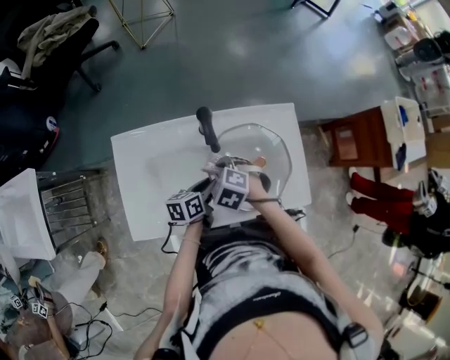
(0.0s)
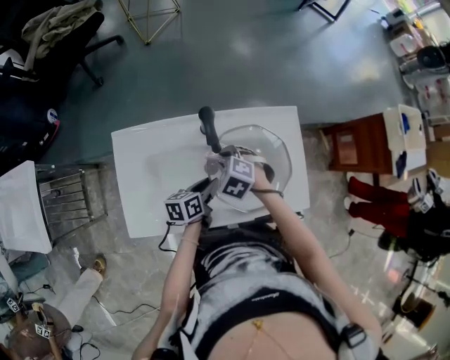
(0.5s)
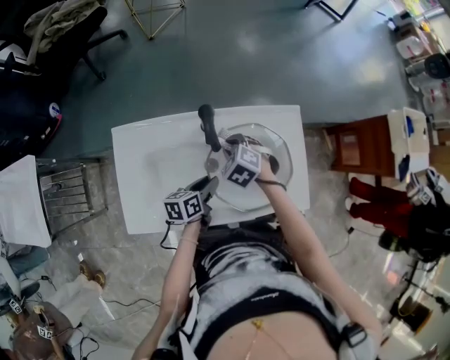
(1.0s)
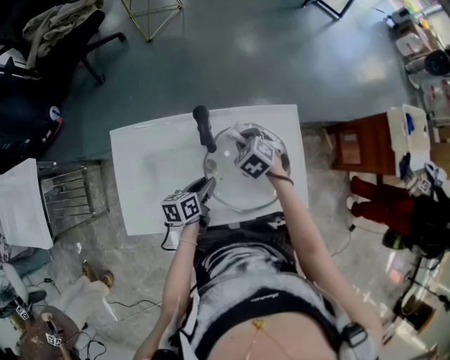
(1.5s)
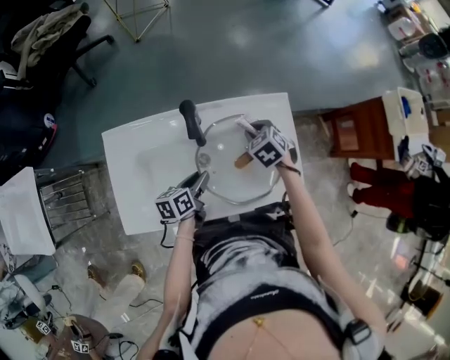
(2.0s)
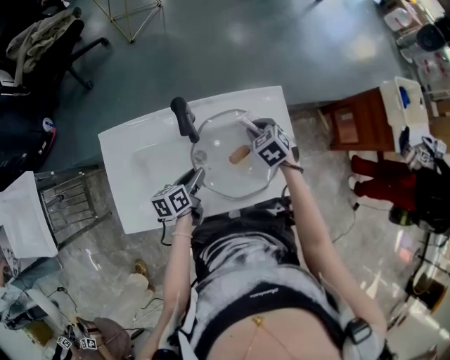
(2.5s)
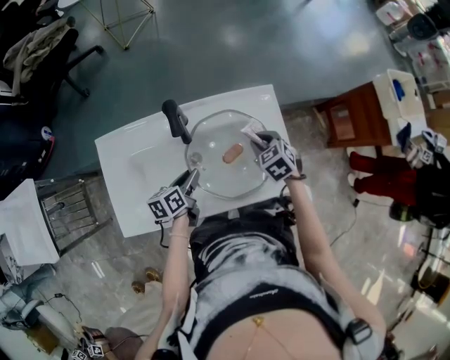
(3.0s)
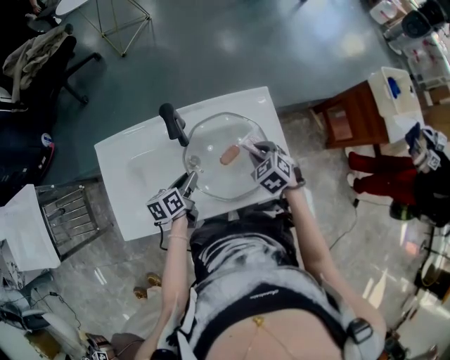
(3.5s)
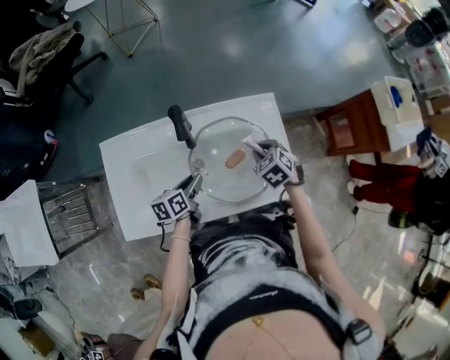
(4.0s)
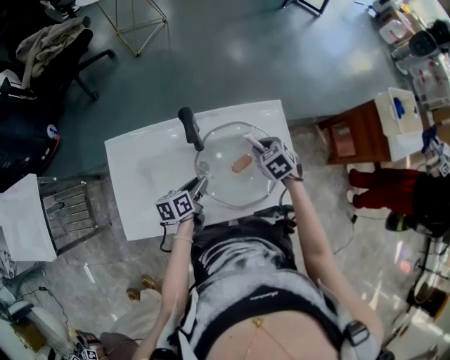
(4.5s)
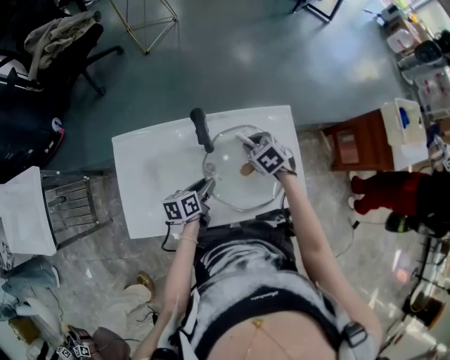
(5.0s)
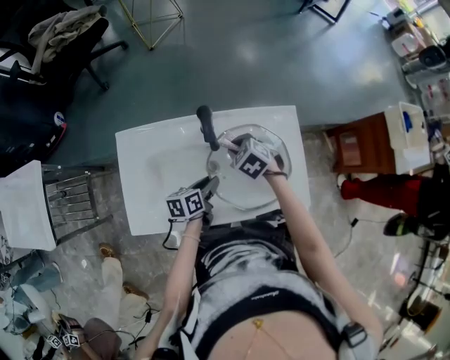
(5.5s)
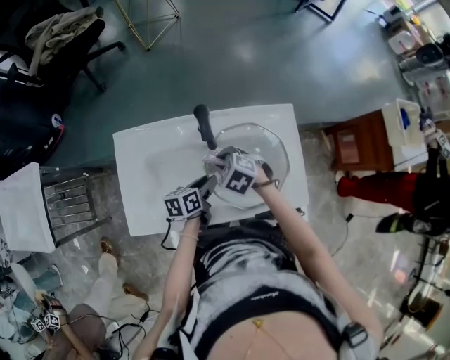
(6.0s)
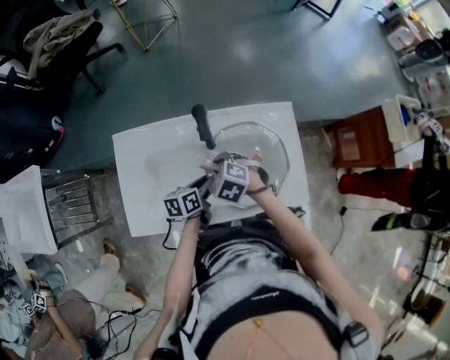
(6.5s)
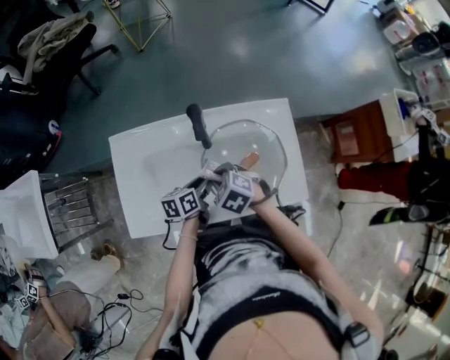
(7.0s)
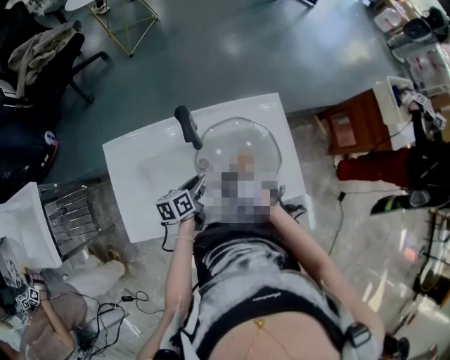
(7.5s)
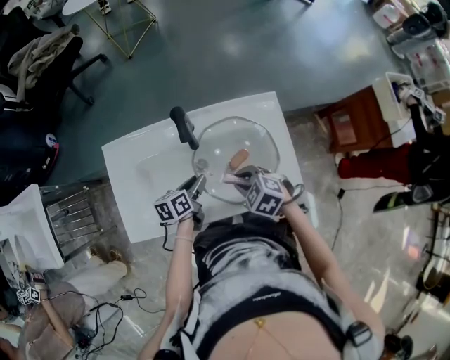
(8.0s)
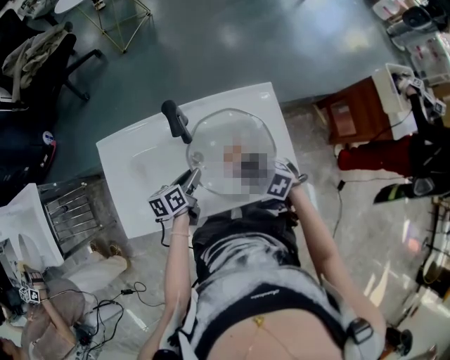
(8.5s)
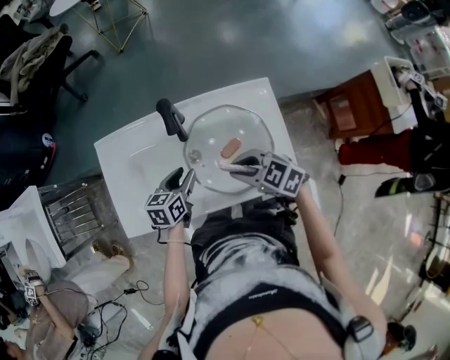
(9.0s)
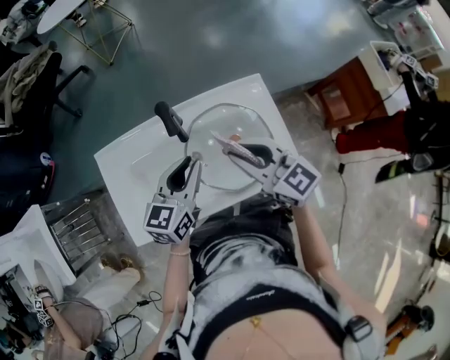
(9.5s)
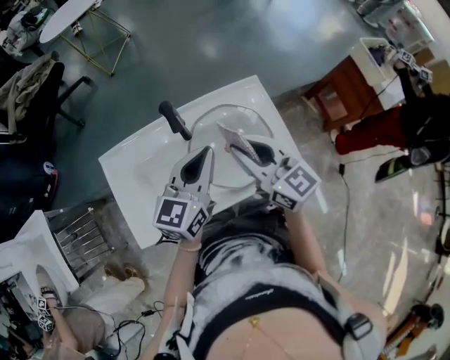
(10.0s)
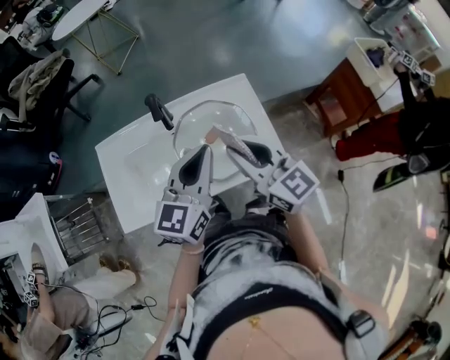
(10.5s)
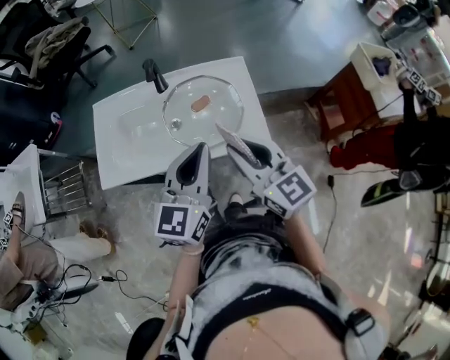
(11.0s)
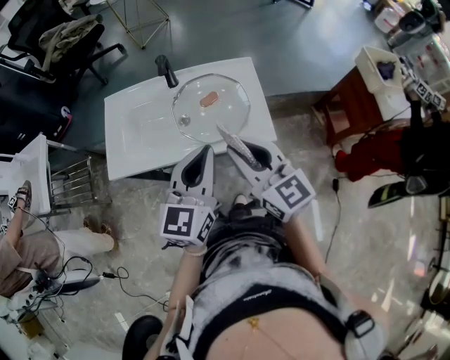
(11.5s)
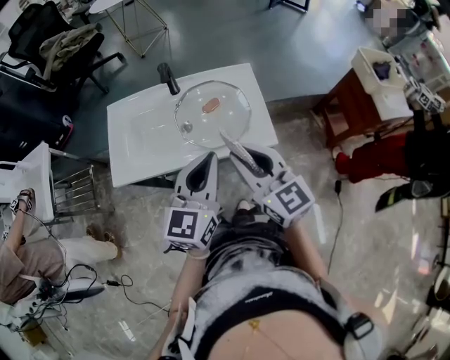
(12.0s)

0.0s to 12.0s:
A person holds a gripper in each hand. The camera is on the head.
0.0s to 2.0s: The right gripper shifts some 20 cm to the right and forward, and changes its angle by approximately 30 degrees.
2.0s to 4.0s: The right gripper goes some 10 cm to the right and backward.
4.0s to 6.0s: The right gripper shifts approximately 20 cm to the left, and turns by roughly 30 degrees.
6.0s to 8.0s: The right gripper is displaced backward and to the right by roughly 15 cm.
8.0s to 10.0s: The two grippers go about 25 cm upward. The right gripper points its fingers approximately 60 degrees further upward; the left gripper rolls clockwise, seen from behind, by about 40 degrees, and closes.
10.0s to 12.0s: The two grippers go approximately 20 cm backward.

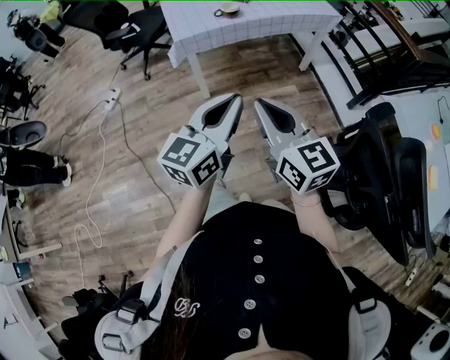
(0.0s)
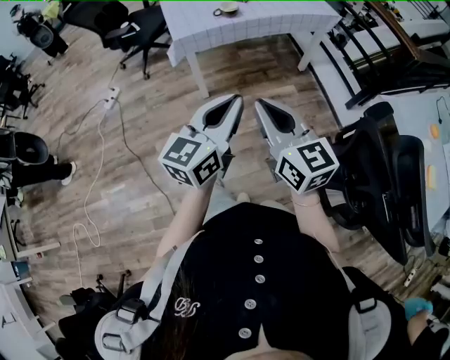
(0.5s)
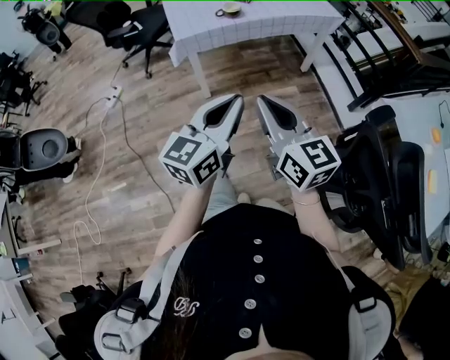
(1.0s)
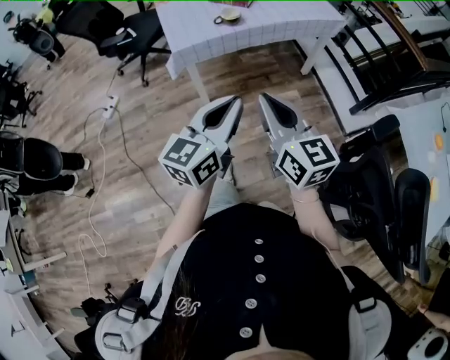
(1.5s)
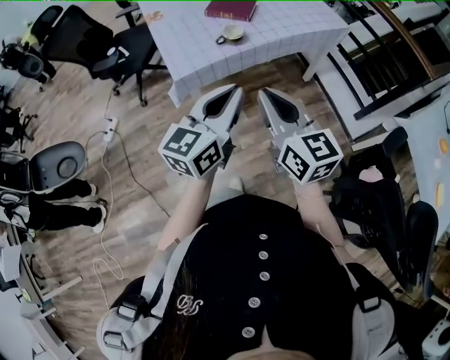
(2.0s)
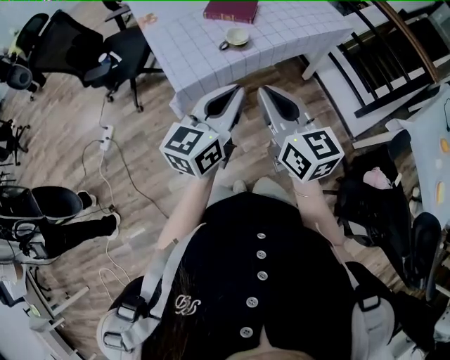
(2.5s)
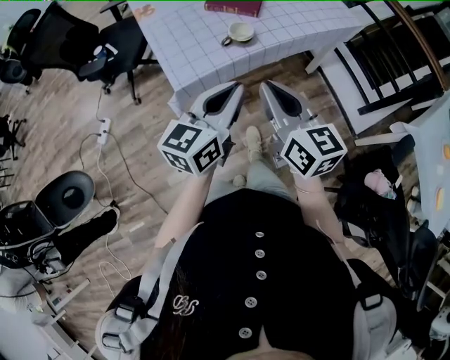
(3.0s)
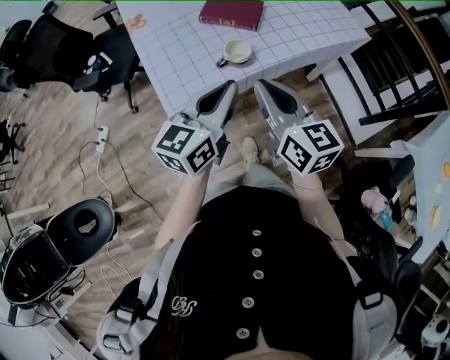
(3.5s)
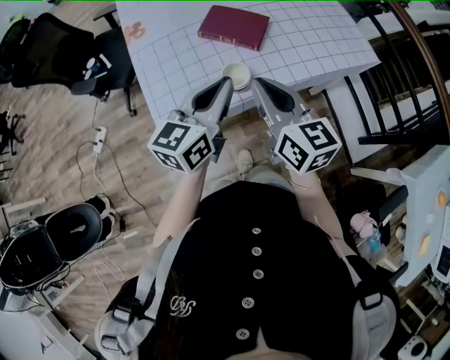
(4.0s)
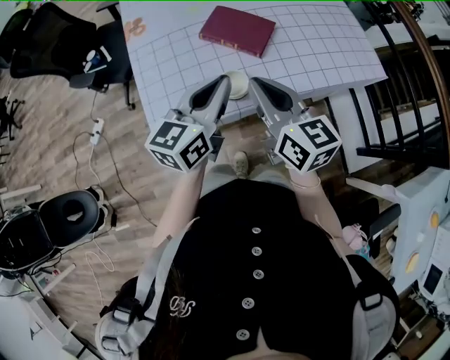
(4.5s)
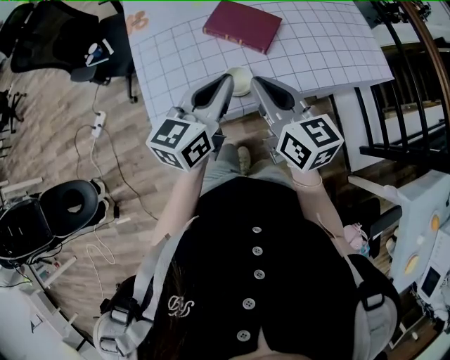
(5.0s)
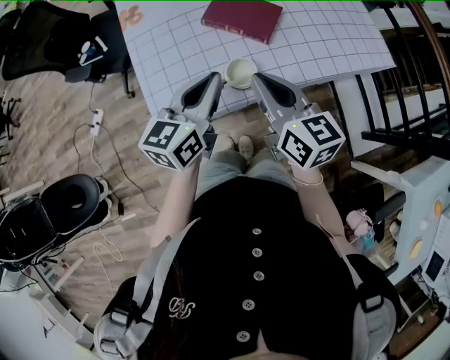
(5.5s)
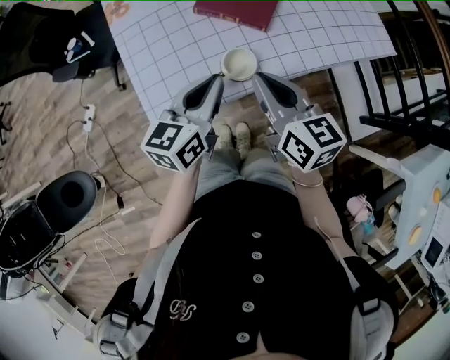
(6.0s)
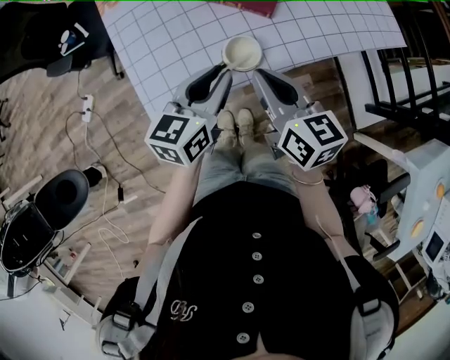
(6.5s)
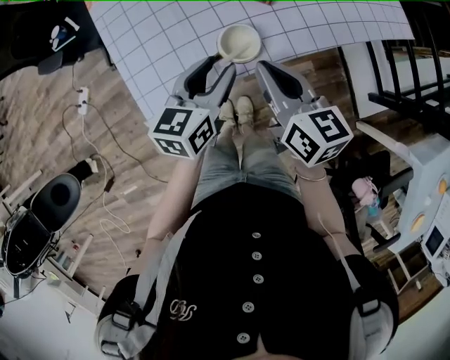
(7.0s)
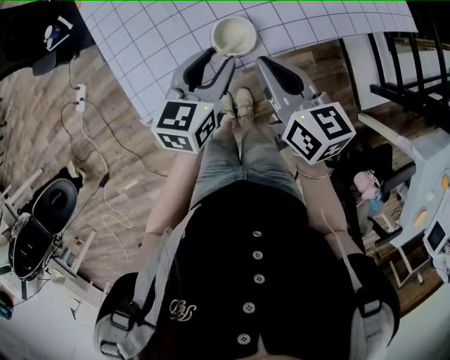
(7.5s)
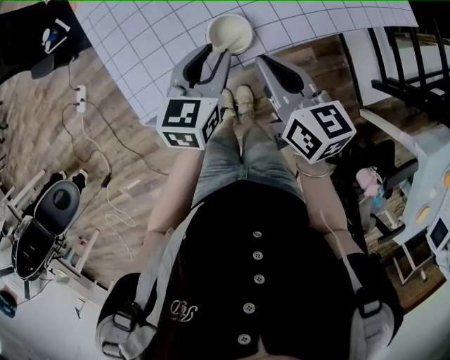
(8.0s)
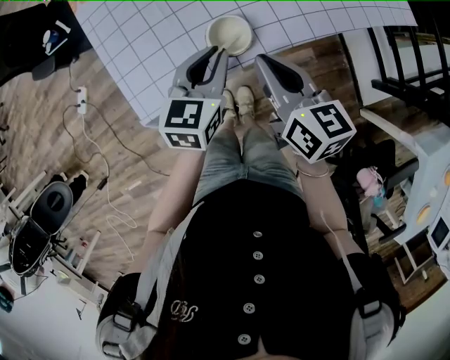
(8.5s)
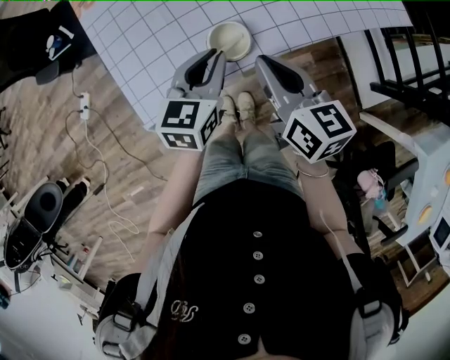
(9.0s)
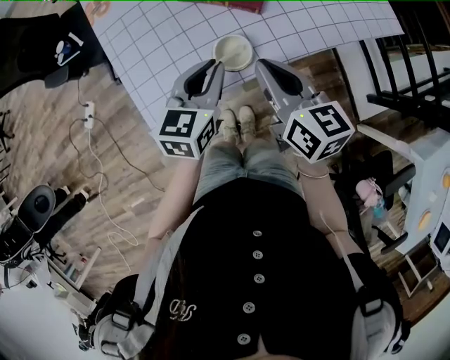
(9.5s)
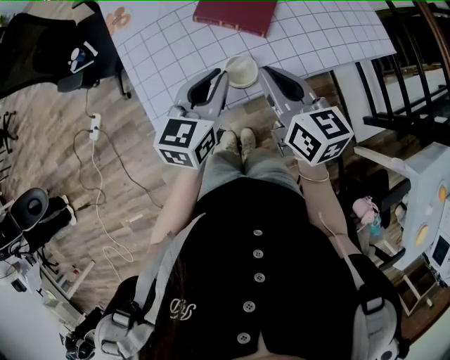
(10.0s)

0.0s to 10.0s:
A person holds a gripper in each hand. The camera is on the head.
0.0s to 2.0s: The two grippers go some 25 cm forward.
2.0s to 4.0s: Both grippers move forward, roughly 35 cm.
4.0s to 6.0s: The grippers both shift downward by about 5 cm.
6.0s to 8.0s: Both grippers travel together downward, about 10 cm. The left gripper opens its fingers.
8.0s to 10.0s: The grippers both shift upward by roughly 10 cm.

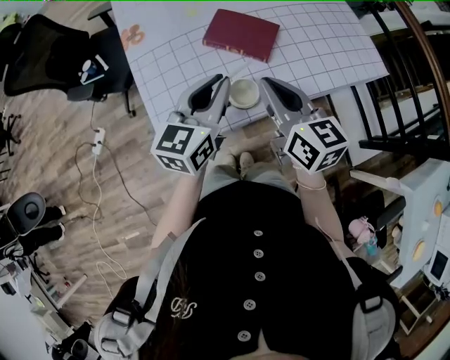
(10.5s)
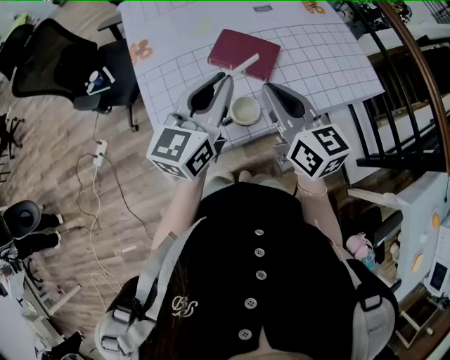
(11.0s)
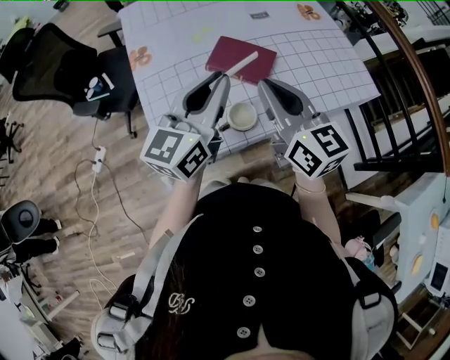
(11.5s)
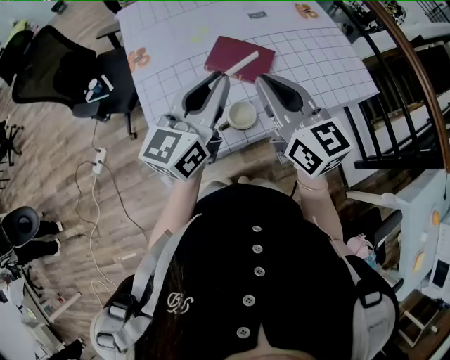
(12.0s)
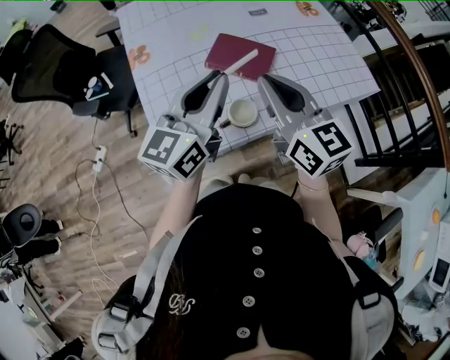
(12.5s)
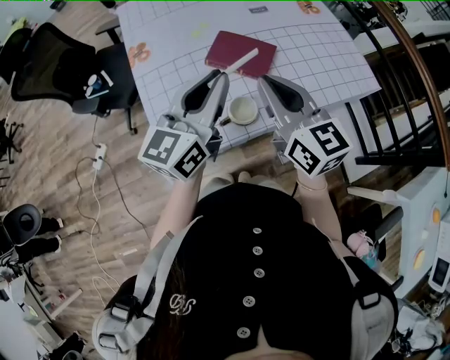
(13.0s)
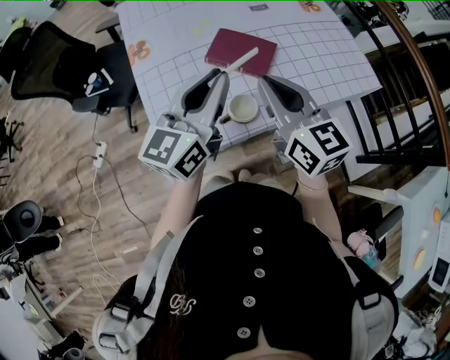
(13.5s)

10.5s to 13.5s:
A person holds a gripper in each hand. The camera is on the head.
10.5s to 12.0s: The two grippers go roughly 10 cm upward.
12.0s to 13.5s: There are only small adjustments of the grippers.

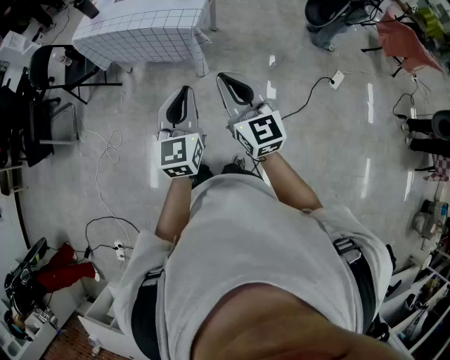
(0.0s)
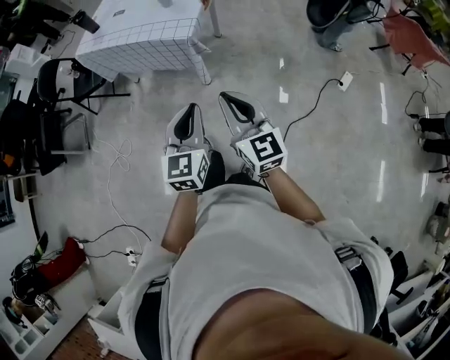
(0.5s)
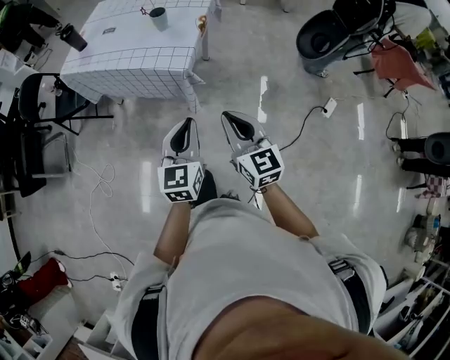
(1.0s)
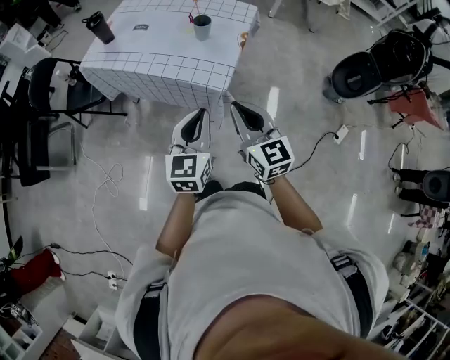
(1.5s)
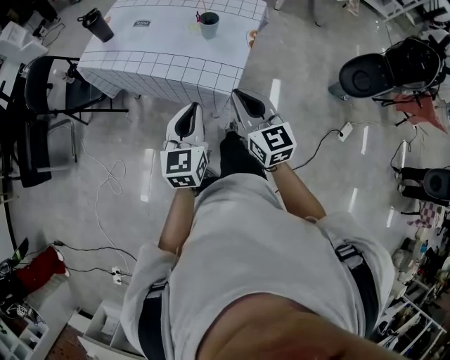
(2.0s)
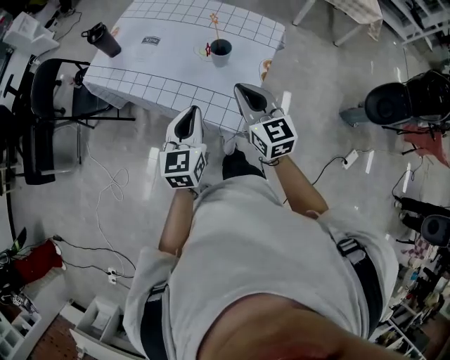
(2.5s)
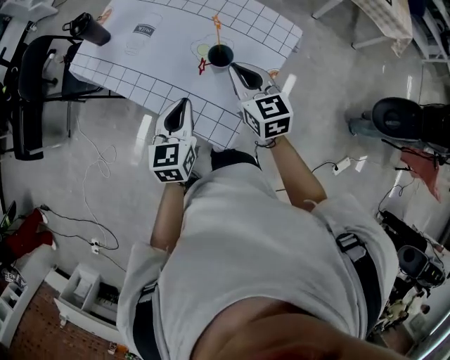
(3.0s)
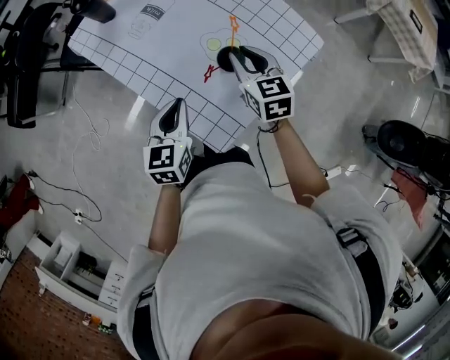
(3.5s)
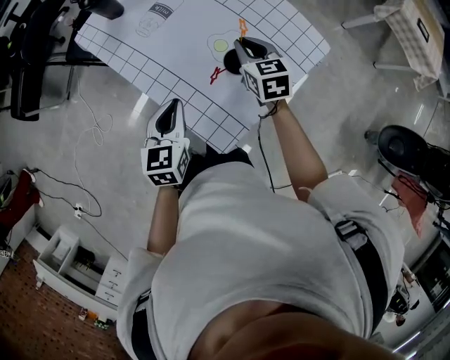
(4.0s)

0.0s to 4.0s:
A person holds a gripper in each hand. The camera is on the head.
0.0s to 2.0s: The grippers both shift forward by approximately 35 cm.
2.0s to 4.0s: The right gripper travels forward by roughly 40 cm, and rotates approximately 30 degrees. The left gripper moves forward, about 25 cm, and changes its angle by about 30 degrees.
